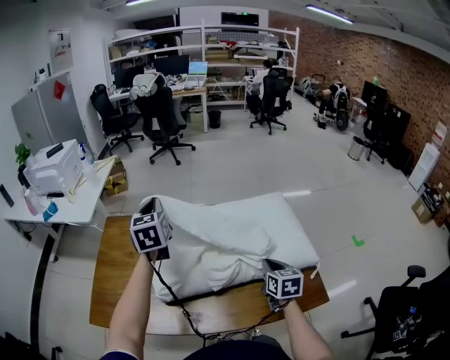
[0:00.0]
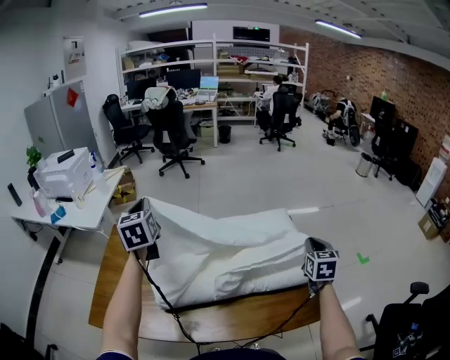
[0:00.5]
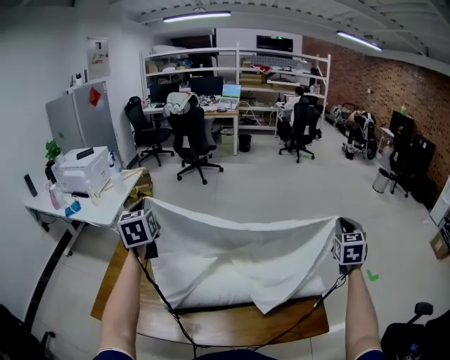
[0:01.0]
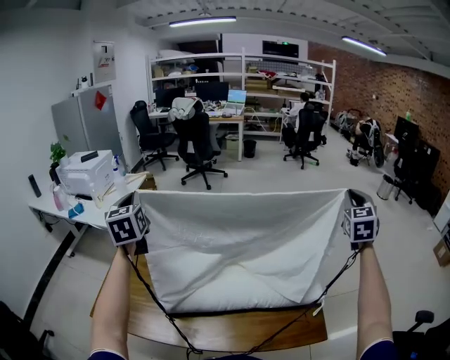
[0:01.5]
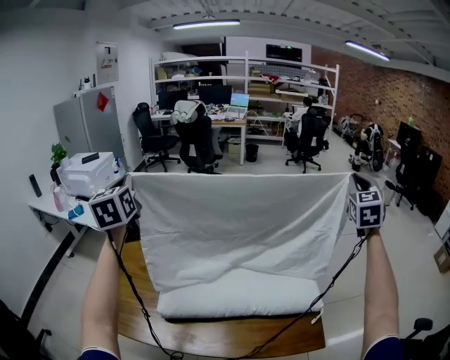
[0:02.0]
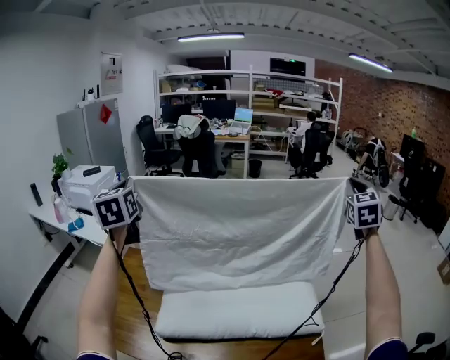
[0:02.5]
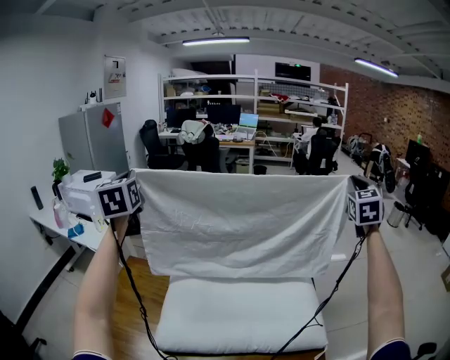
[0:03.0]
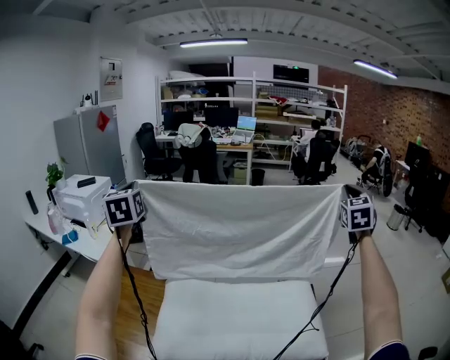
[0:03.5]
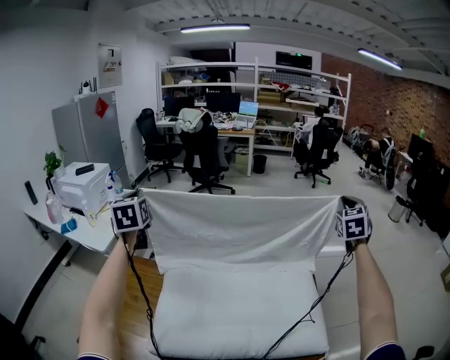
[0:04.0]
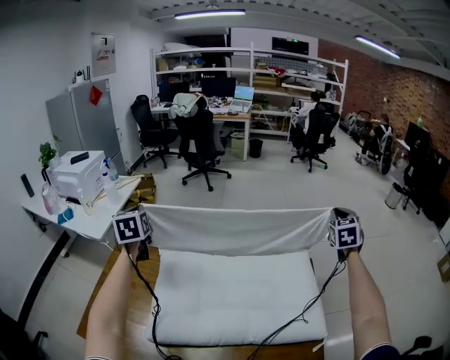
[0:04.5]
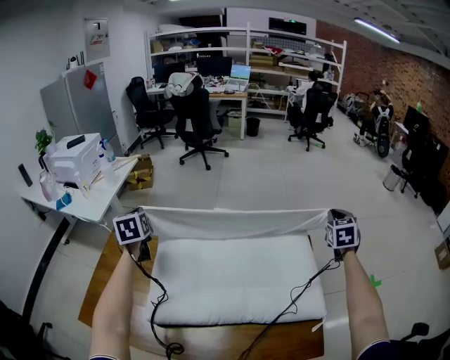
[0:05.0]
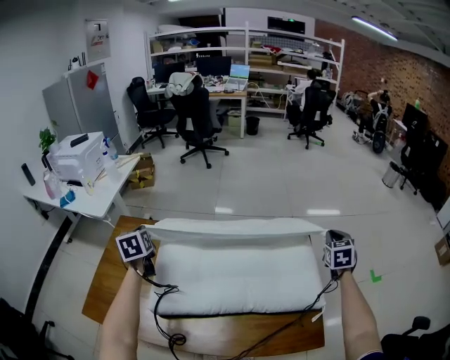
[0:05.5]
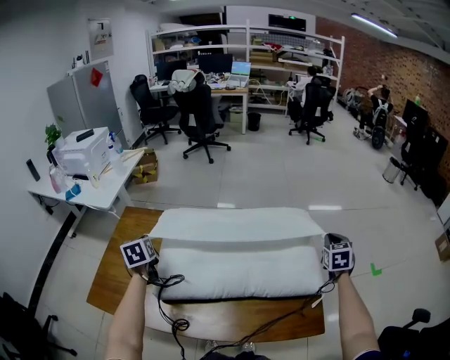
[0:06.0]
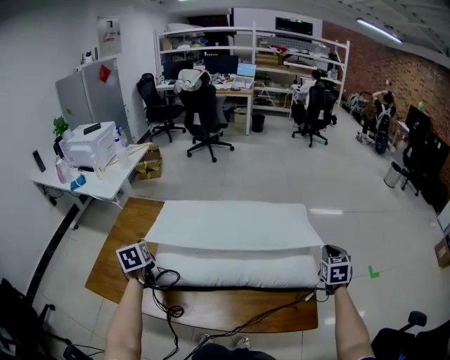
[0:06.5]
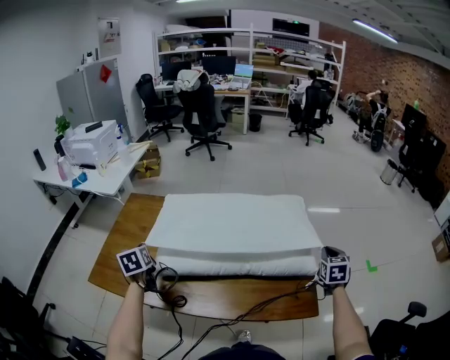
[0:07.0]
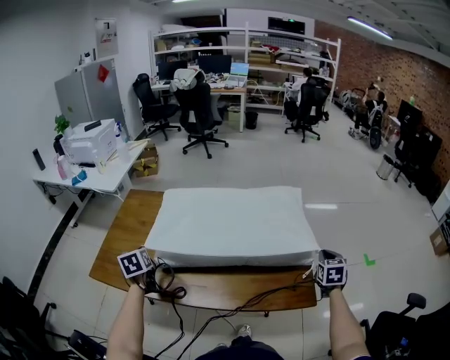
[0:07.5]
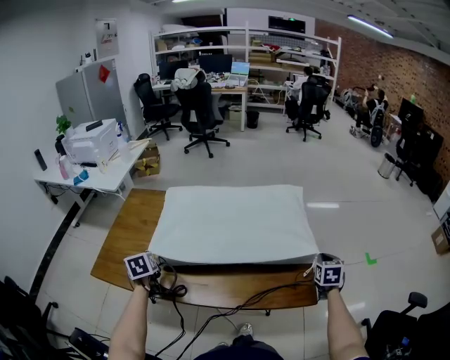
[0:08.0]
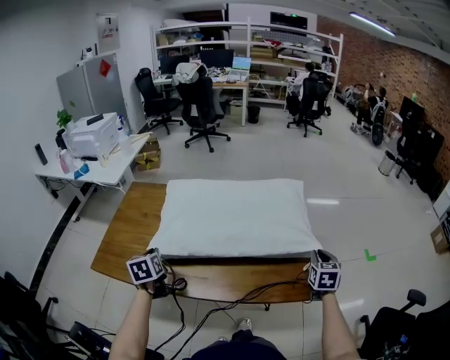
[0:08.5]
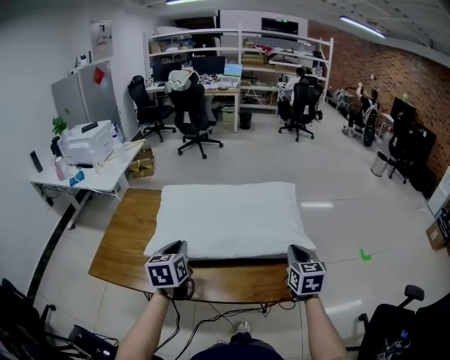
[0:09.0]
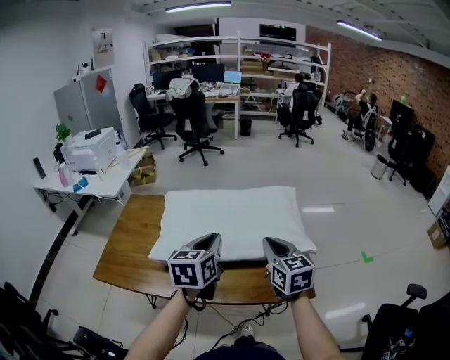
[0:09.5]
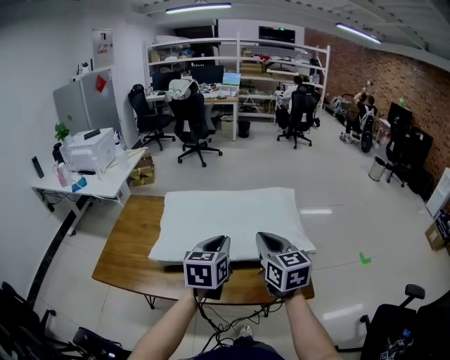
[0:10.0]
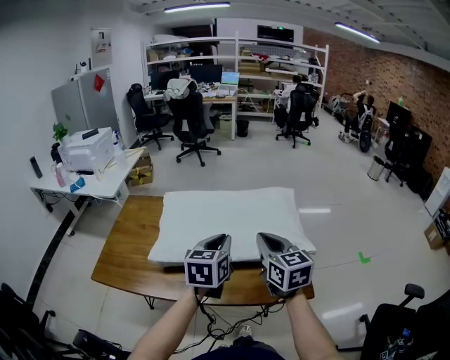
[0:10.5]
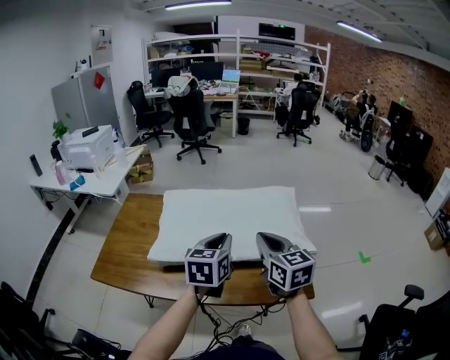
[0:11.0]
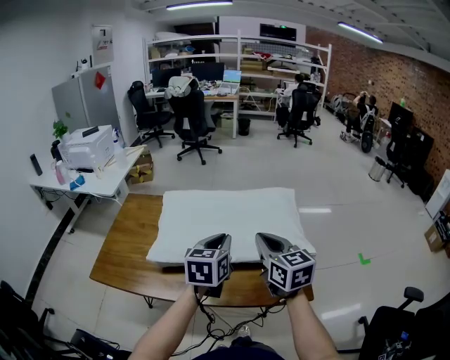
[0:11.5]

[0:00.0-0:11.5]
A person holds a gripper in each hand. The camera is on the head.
0:00.0 to 0:02.0: The left gripper shifts approximately 20 cm upward and to the left. The right gripper travels upward, to the right and forward by about 50 cm, and angles its fingers upward, by about 30 degrees.
0:02.0 to 0:04.0: The left gripper moves forward, approximately 15 cm, while the right gripper goes some 20 cm forward and downward.
0:04.0 to 0:06.0: Both grippers travel together downward and backward, roughly 35 cm. The left gripper turns by approximately 30 degrees. Meanwhile the right gripper changes its angle by about 20 degrees.
0:06.0 to 0:07.5: Both grippers travel together backward, approximately 15 cm.
0:07.5 to 0:09.5: The left gripper moves to the right and upward, about 35 cm, and rotates some 40 degrees. The right gripper goes about 30 cm to the left and upward, and rotates about 30 degrees.
0:09.5 to 0:11.5: The grippers make only small movements.

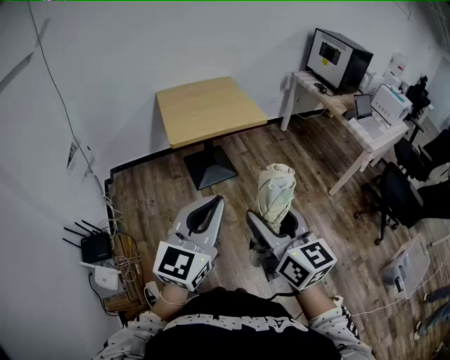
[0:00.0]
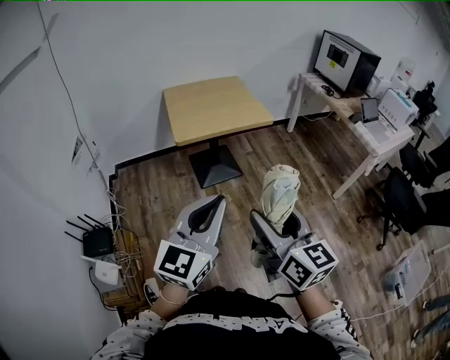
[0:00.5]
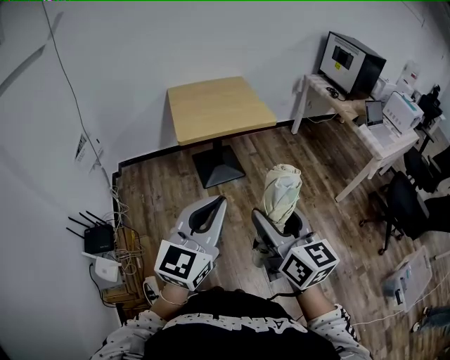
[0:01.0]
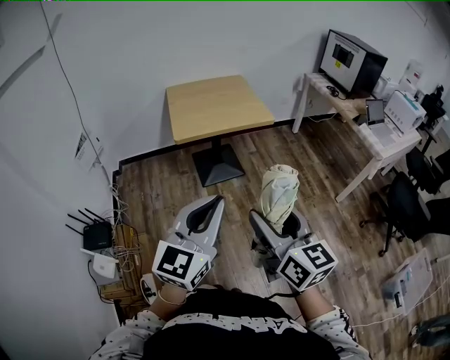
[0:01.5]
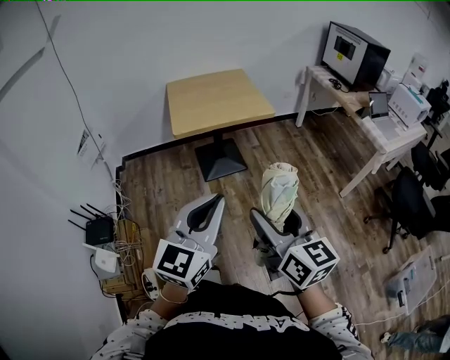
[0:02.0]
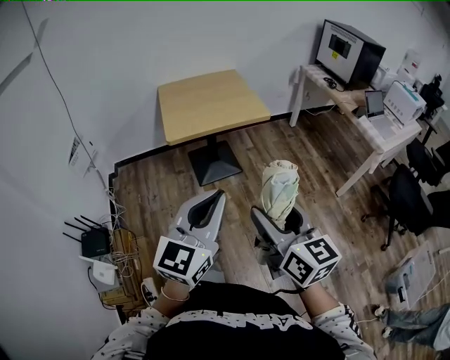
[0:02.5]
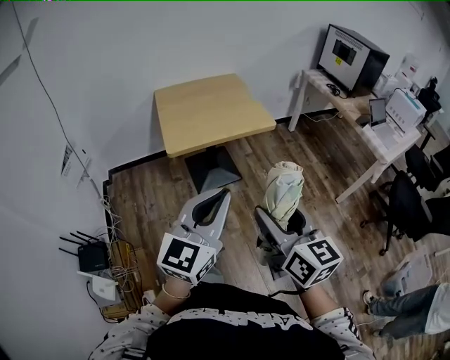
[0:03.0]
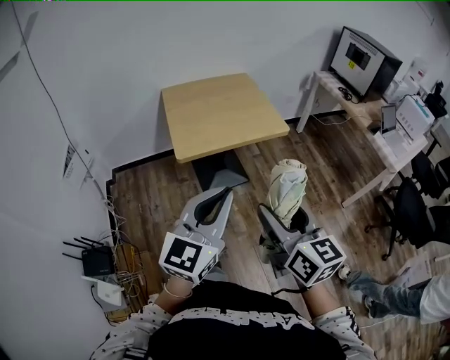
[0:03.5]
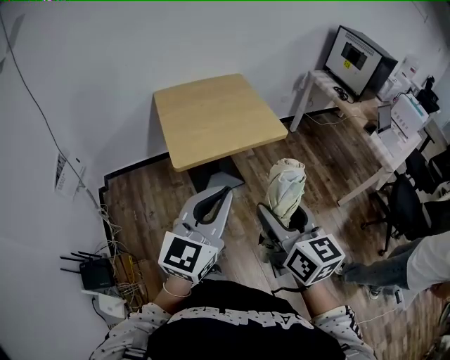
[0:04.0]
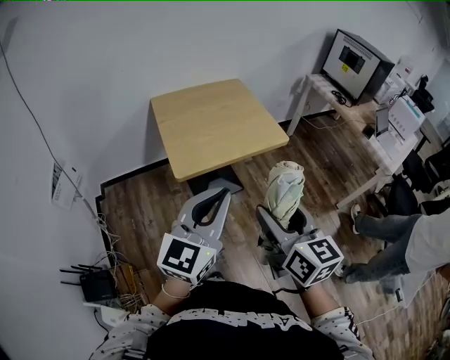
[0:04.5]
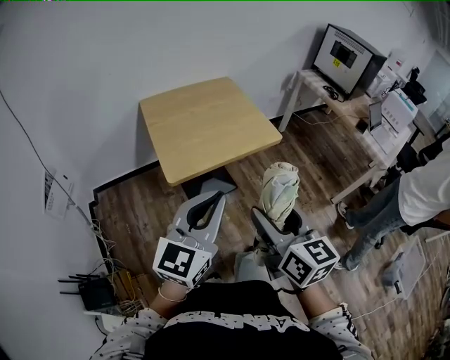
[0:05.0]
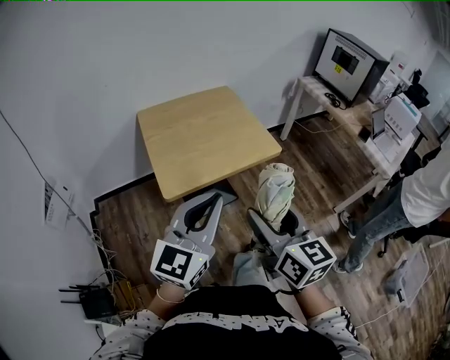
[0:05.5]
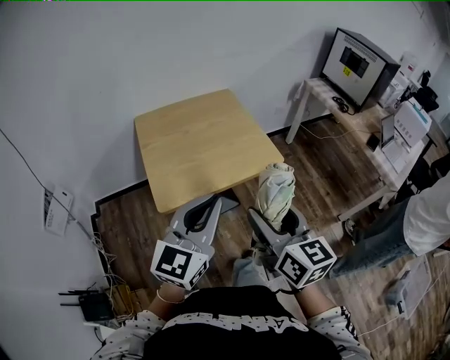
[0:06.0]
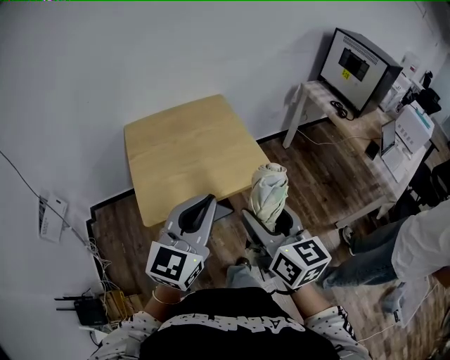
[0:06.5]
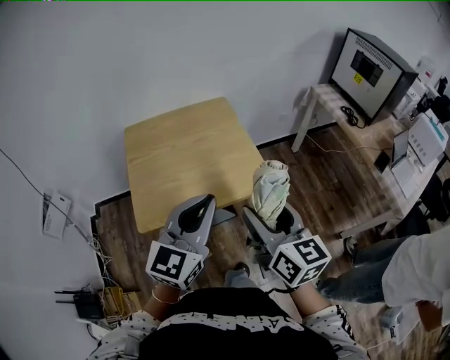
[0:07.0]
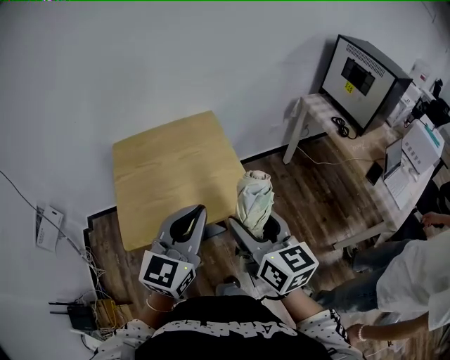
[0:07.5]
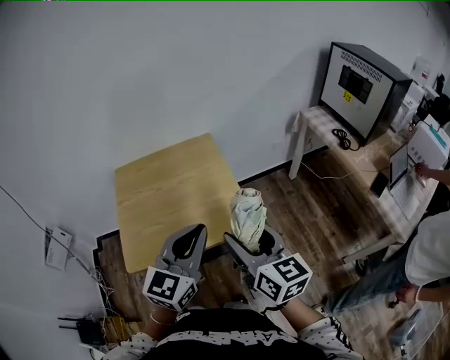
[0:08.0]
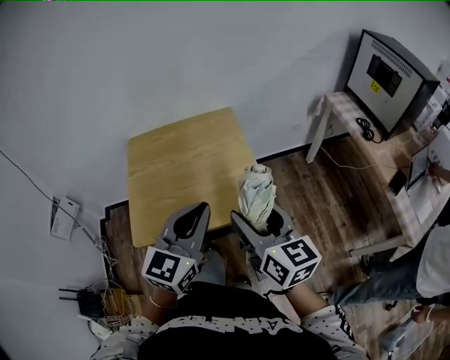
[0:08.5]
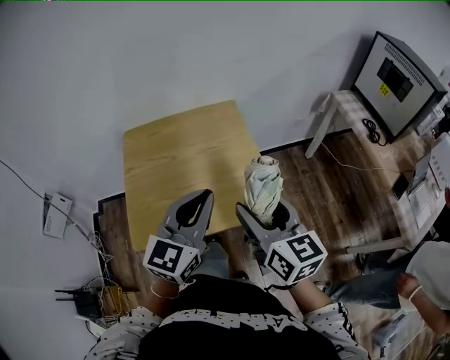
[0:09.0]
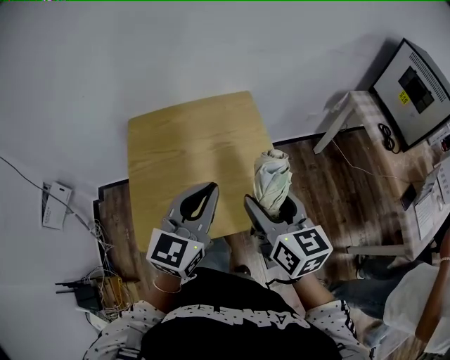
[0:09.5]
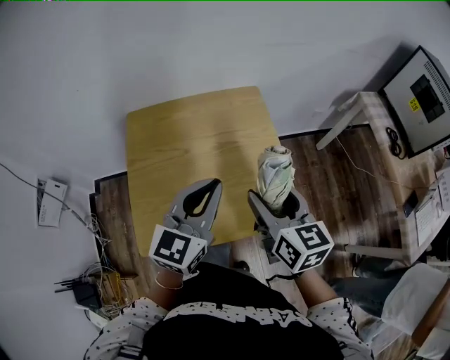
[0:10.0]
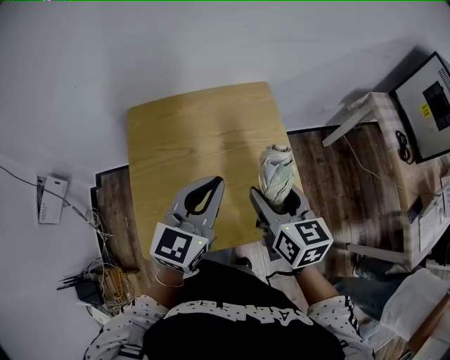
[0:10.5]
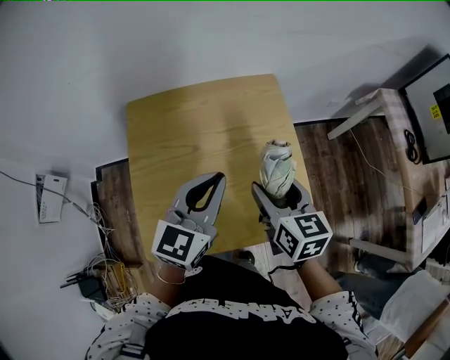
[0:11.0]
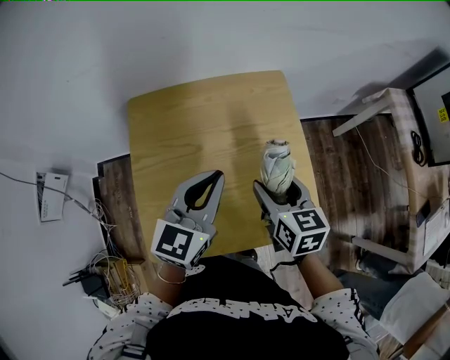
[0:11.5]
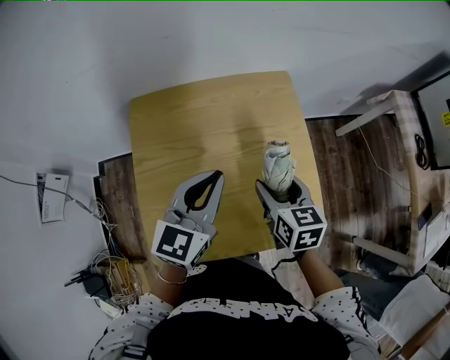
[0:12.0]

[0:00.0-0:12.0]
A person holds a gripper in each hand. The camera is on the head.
0:00.0 to 0:02.0: The grippers both shift to the right by about 5 cm.
0:02.0 to 0:04.0: Both grippers travel together forward and to the left, roughly 25 cm.
0:04.0 to 0:06.0: Both grippers move forward, approximately 15 cm.
0:06.0 to 0:08.0: Both grippers move forward and to the right, roughly 25 cm.
0:08.0 to 0:10.0: The right gripper heads forward, to the left and downward, covering some 20 cm. Meanwhile the left gripper heads forward and to the left, covering approximately 20 cm.
0:10.0 to 0:12.0: The right gripper goes approximately 15 cm downward and forward. Meanwhile the left gripper is displaced forward, to the left and downward by some 10 cm.

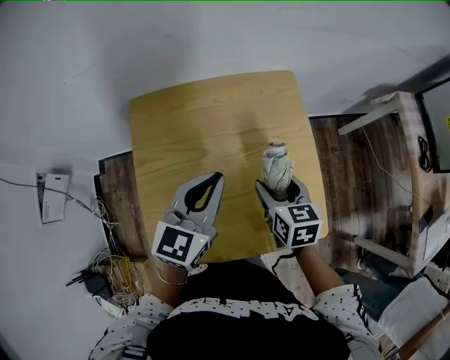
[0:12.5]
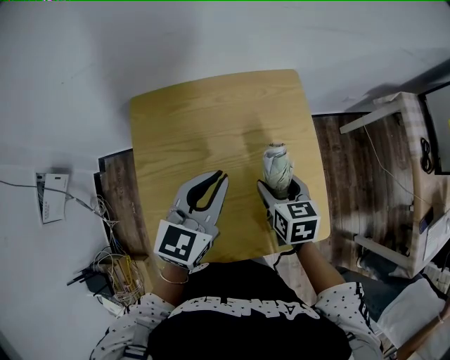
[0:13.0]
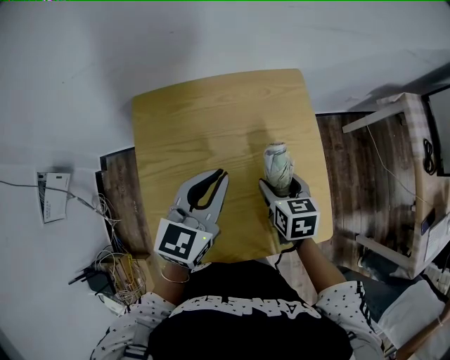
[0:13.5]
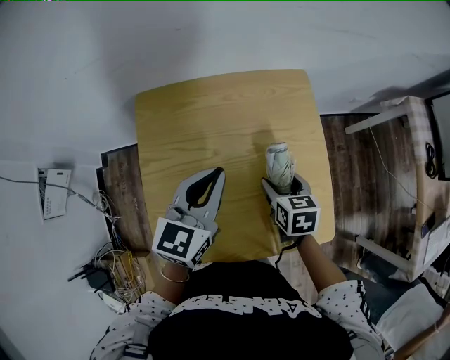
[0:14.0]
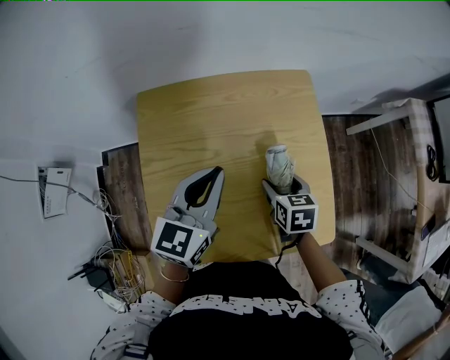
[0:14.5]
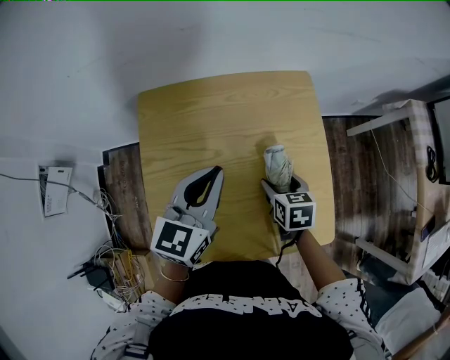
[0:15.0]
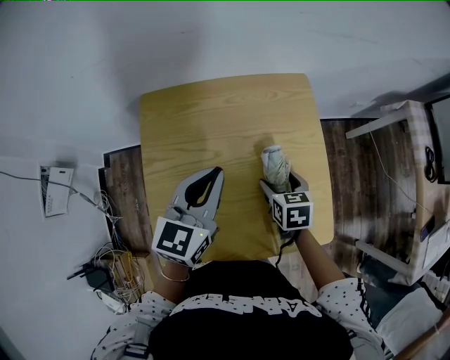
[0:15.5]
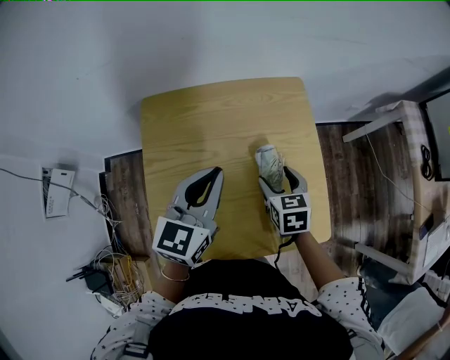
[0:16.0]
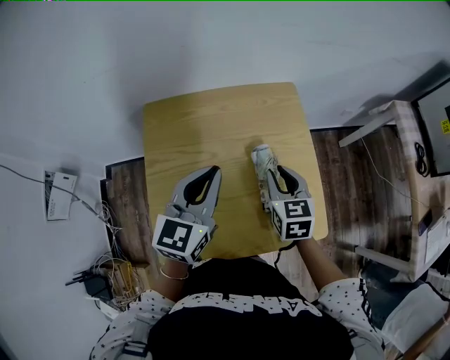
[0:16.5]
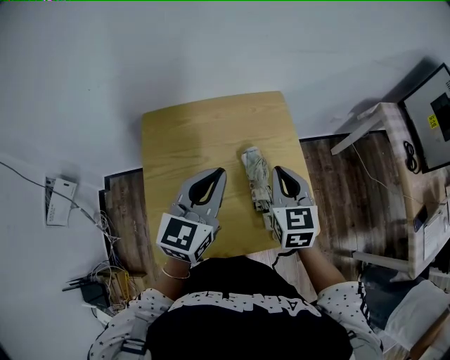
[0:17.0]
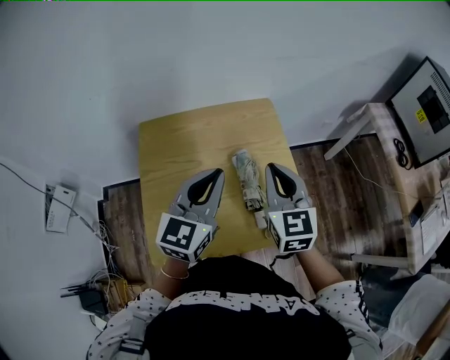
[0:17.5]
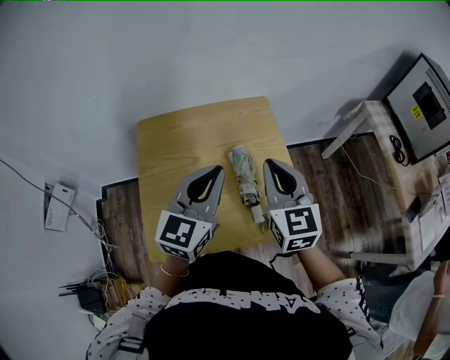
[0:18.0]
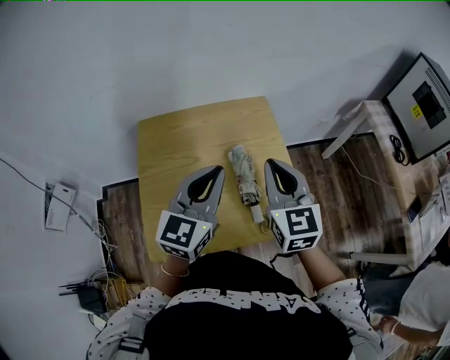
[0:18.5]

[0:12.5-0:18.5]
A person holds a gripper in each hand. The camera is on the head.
0:12.5 to 0:14.5: The right gripper shifts some 5 cm downward.
0:14.5 to 0:16.5: The right gripper heads upward, covering some 10 cm, rotates approximately 20 degrees, and closes its fingers, while the left gripper moves about 5 cm.
0:16.5 to 0:18.5: The left gripper heads to the right, upward and backward, covering about 10 cm. The right gripper heads upward, covering approximately 15 cm, and rotates some 20 degrees.
